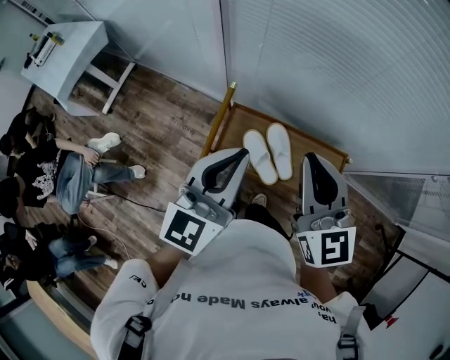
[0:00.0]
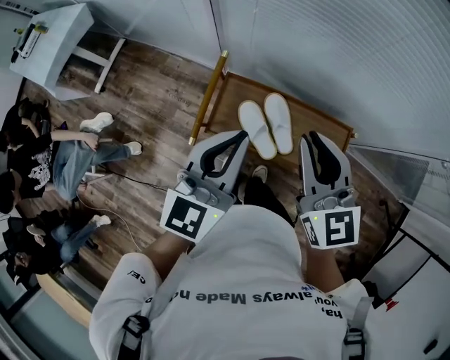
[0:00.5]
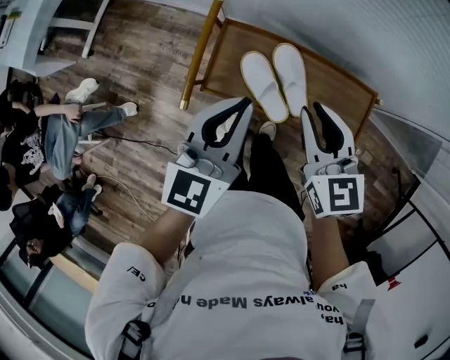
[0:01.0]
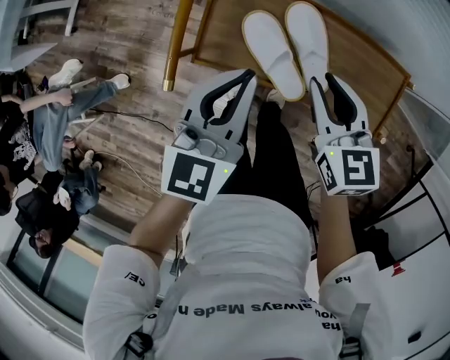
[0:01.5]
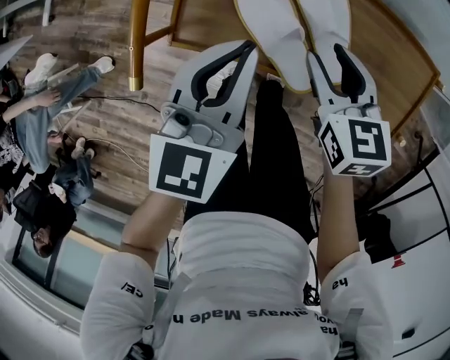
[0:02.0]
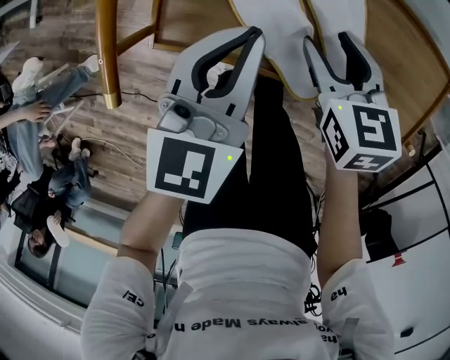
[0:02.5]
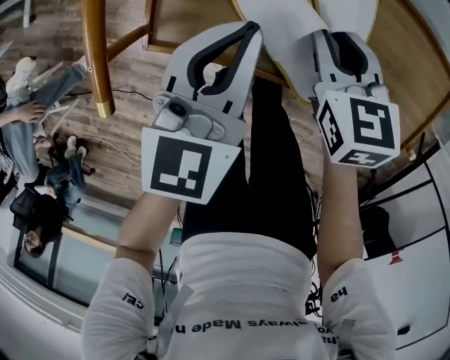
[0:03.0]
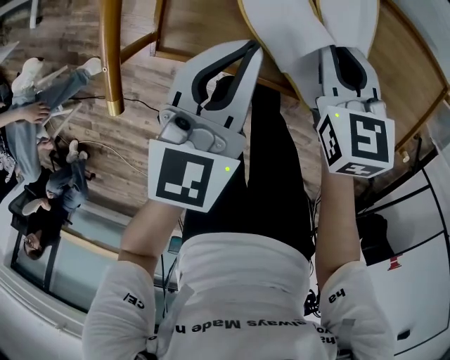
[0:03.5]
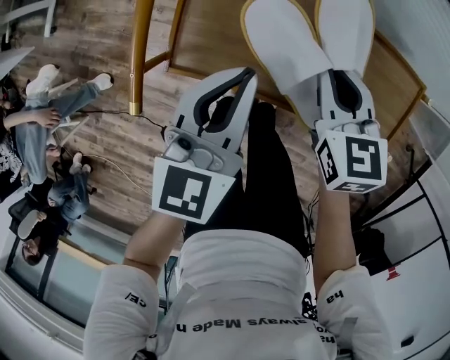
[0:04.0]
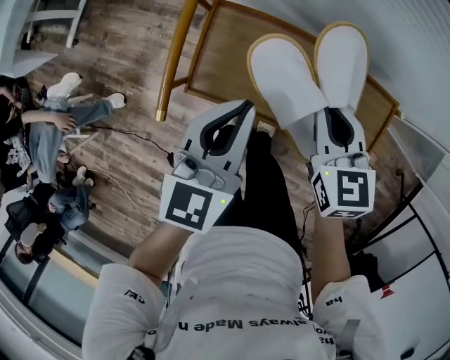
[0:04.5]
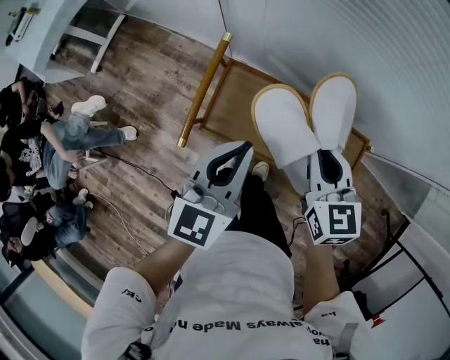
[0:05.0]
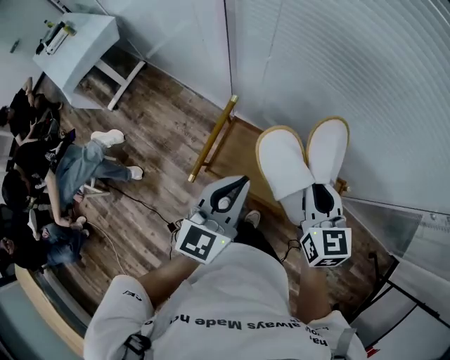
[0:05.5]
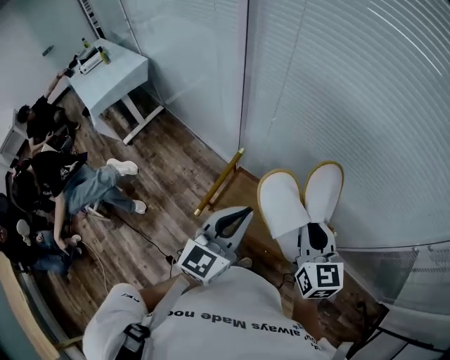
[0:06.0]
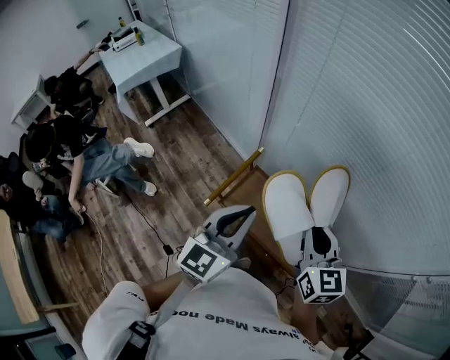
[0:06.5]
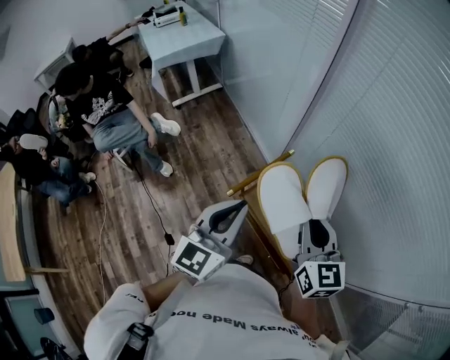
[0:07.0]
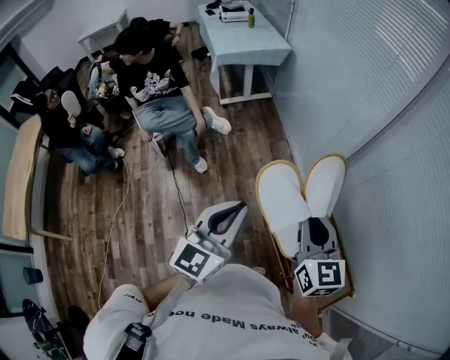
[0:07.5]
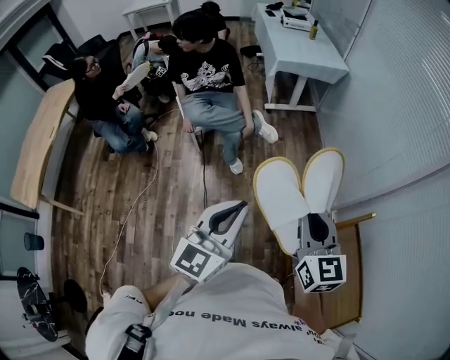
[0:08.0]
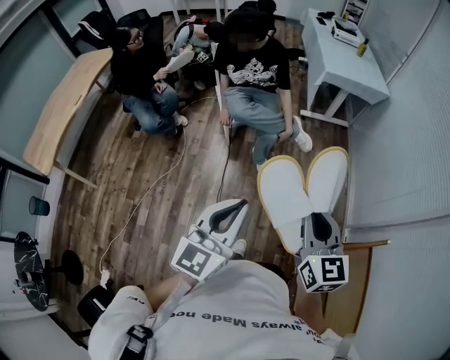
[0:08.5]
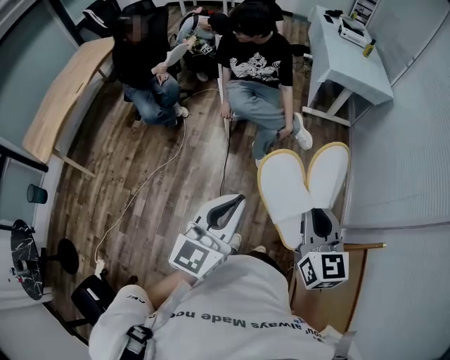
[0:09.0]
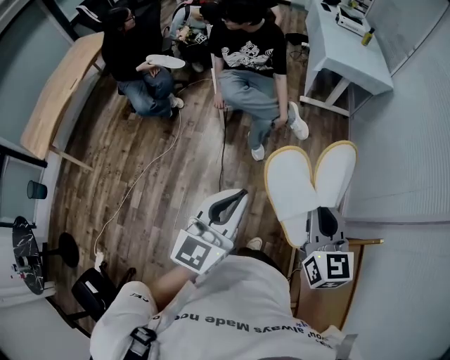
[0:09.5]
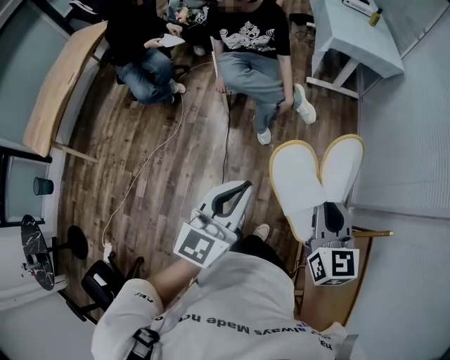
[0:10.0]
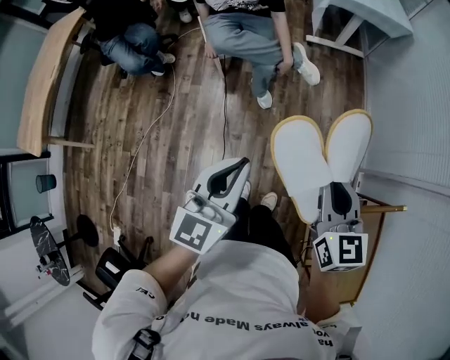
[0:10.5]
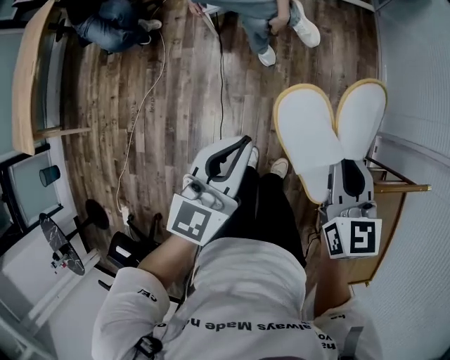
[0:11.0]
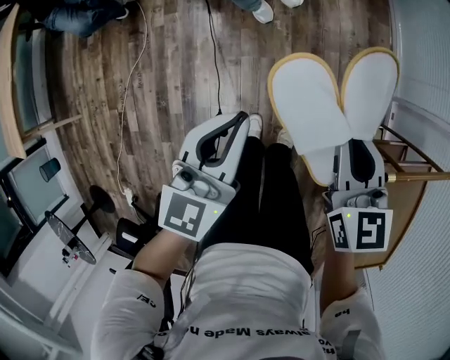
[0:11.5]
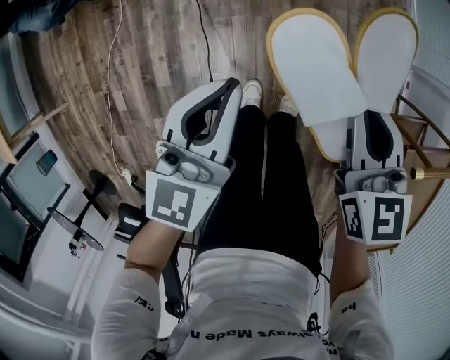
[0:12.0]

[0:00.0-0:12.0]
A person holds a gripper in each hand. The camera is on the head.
0:00.0 to 0:02.0: The two grippers go roughly 40 cm downward. The right gripper tilts its fingers roughly 40 degrees downward, and opens its fingers; the left gripper changes its angle by approximately 20 degrees.
0:02.0 to 0:04.0: The right gripper moves approximately 10 cm downward and comes back, and closes up; the left gripper goes downward and returns, roughly 10 cm each way.
0:04.0 to 0:06.0: Both grippers travel together upward, about 40 cm. The left gripper swivels some 20 degrees. Meanwhile the right gripper rotates some 30 degrees.
0:06.0 to 0:08.0: The two grippers travel together, some 50 cm. The right gripper swivels approximately 50 degrees. Meanwhile the left gripper turns by approximately 50 degrees.
0:08.0 to 0:10.0: The right gripper goes roughly 10 cm forward, downward and to the left; the left gripper heads to the left, downward and forward, covering about 10 cm.
0:10.0 to 0:12.0: Both grippers move downward, about 40 cm.

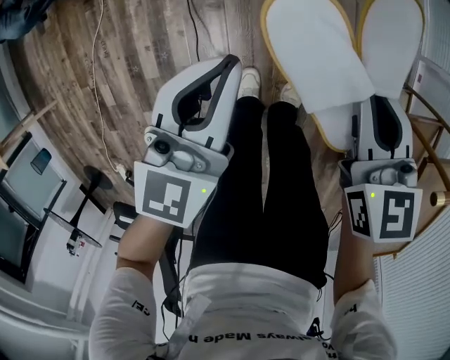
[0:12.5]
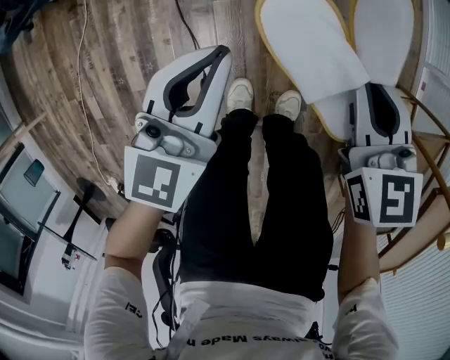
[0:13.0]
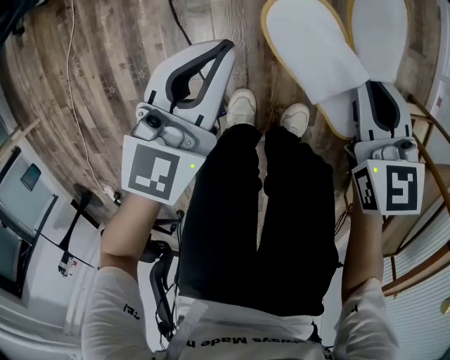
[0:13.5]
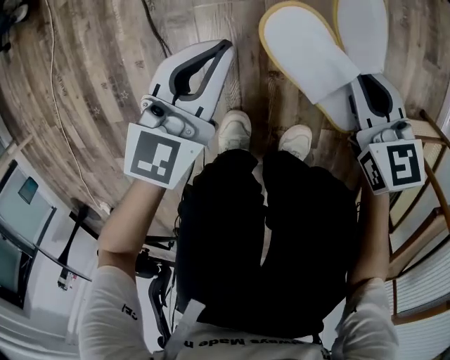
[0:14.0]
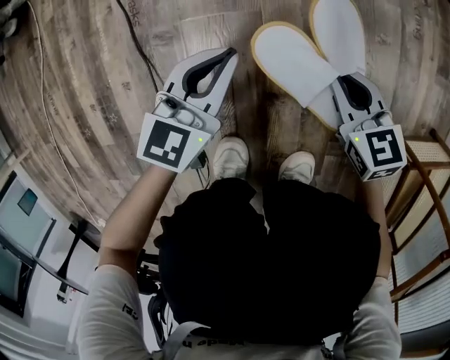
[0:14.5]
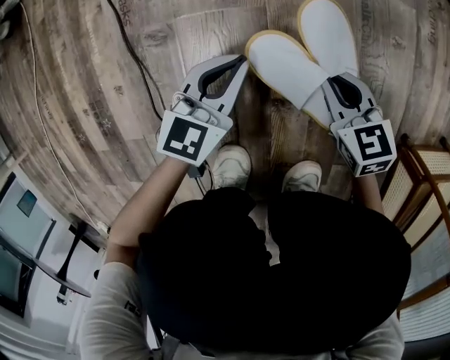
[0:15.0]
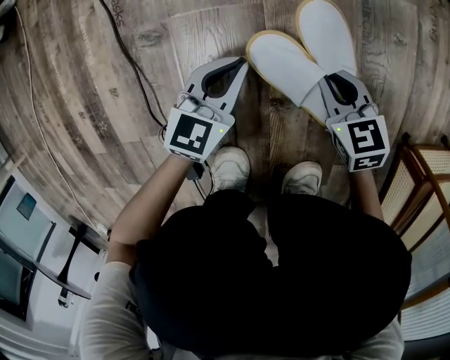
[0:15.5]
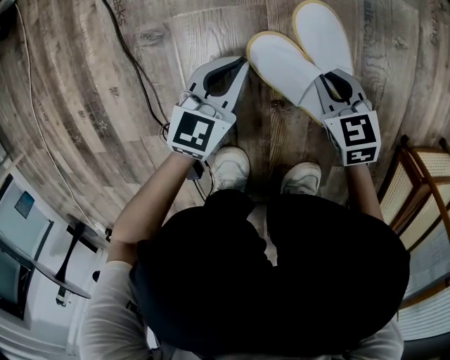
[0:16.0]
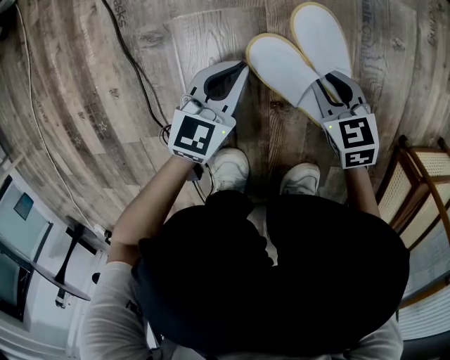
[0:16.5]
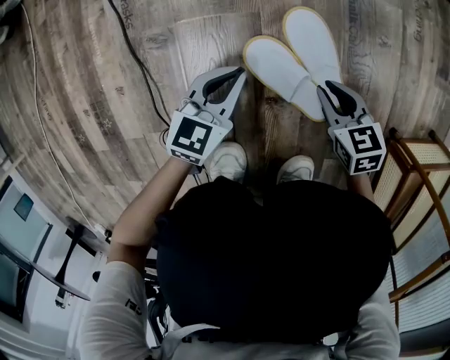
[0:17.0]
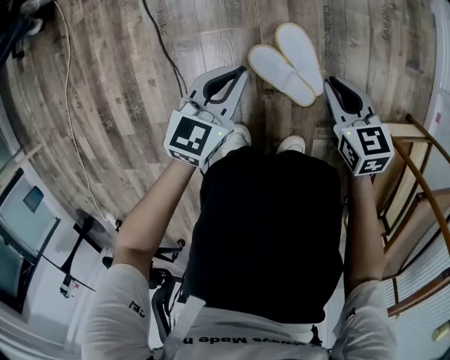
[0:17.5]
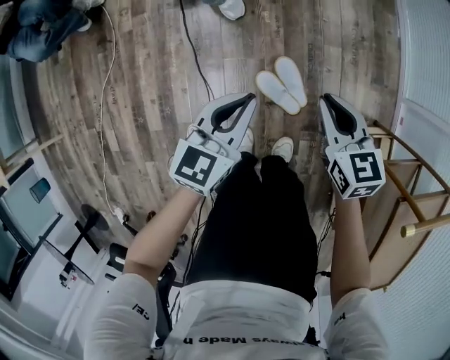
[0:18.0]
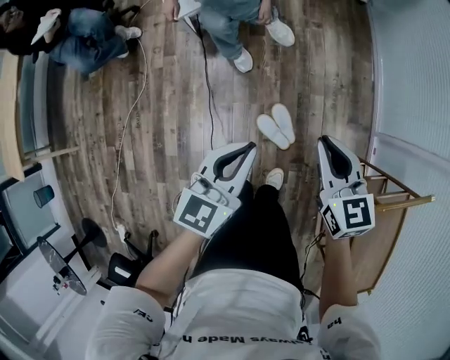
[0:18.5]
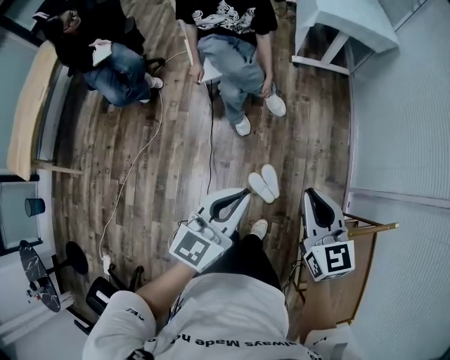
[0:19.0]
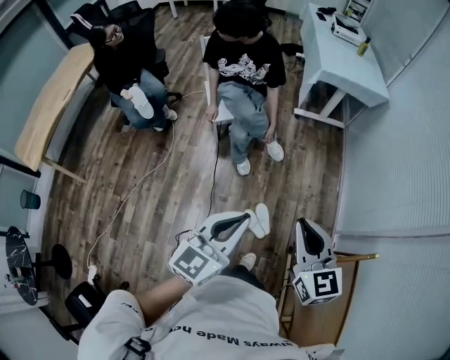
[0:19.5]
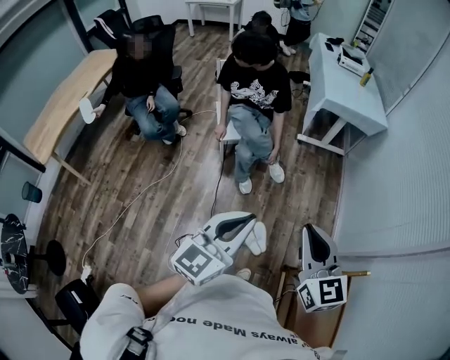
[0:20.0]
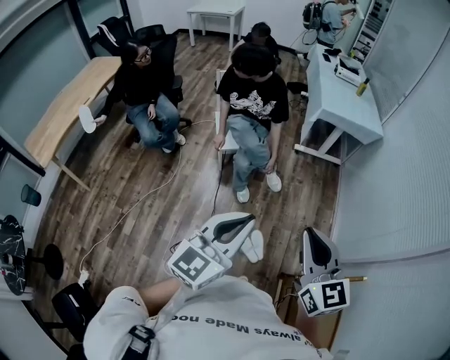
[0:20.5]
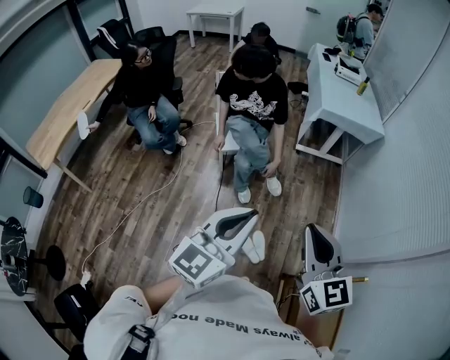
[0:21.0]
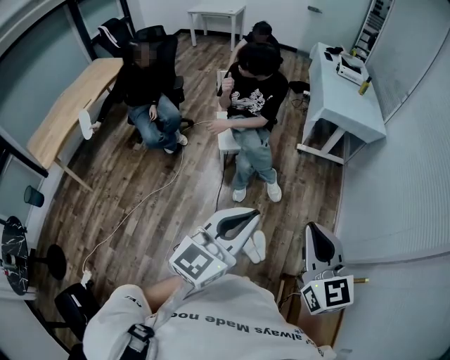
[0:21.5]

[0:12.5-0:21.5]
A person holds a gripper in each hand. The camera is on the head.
0:12.5 to 0:14.5: Both grippers move downward, roughly 50 cm.
0:14.5 to 0:17.0: Both grippers travel together downward, roughly 10 cm.
0:17.0 to 0:19.5: Both grippers move upward, about 1 m. The left gripper swivels about 30 degrees. Meanwhile the right gripper points its fingers approximately 30 degrees further upward.
0:19.5 to 0:21.5: Both grippers move upward, about 15 cm.

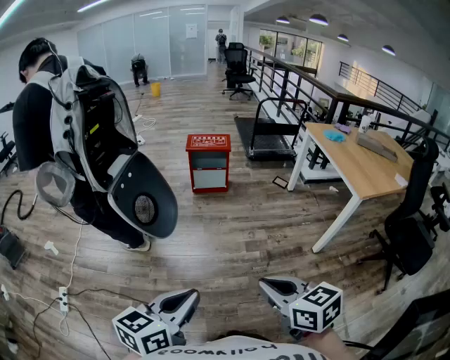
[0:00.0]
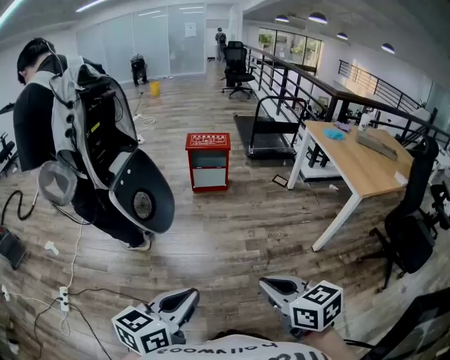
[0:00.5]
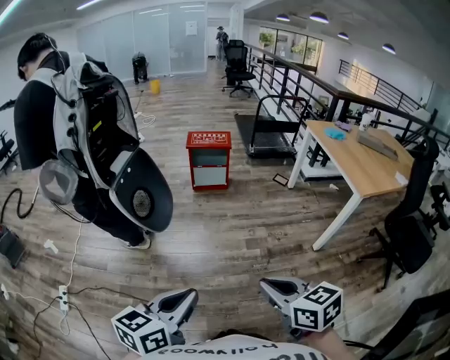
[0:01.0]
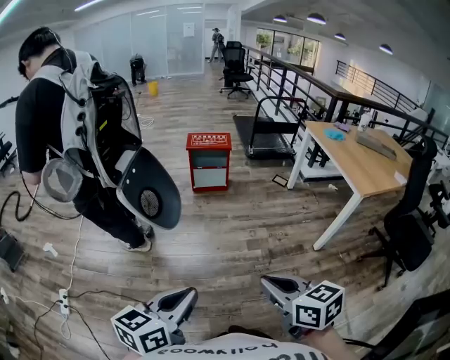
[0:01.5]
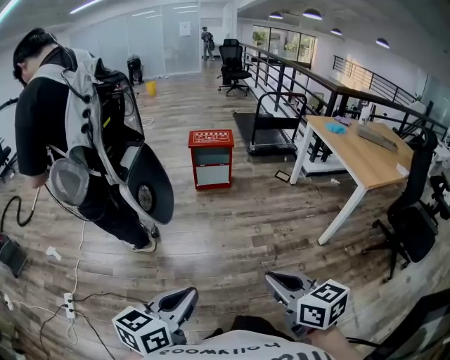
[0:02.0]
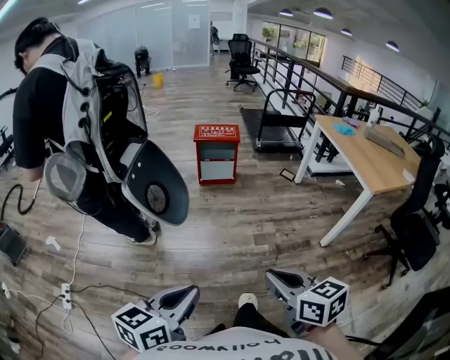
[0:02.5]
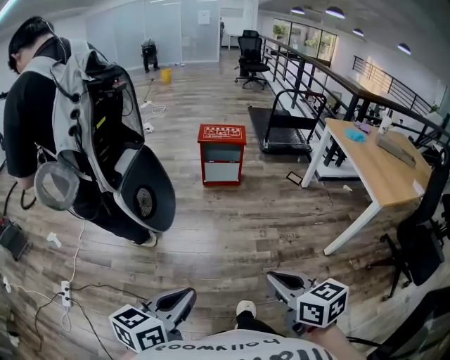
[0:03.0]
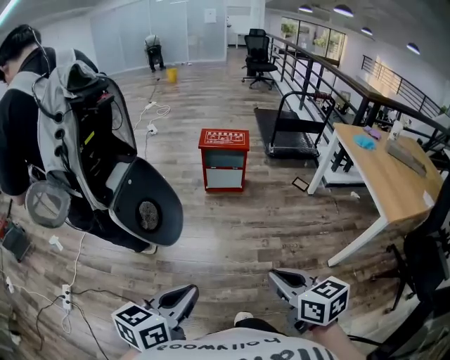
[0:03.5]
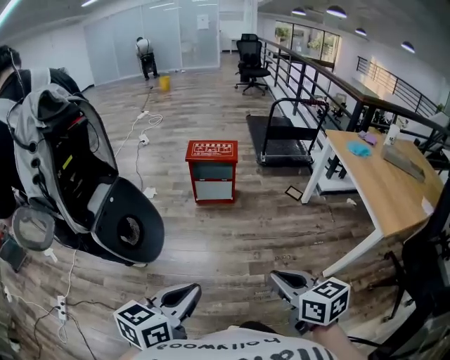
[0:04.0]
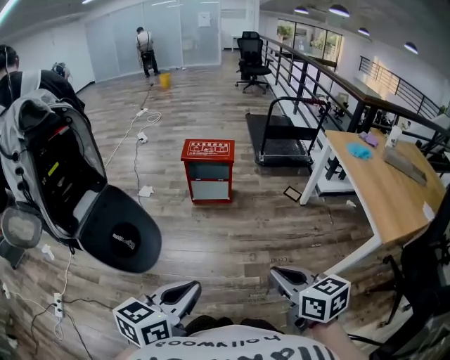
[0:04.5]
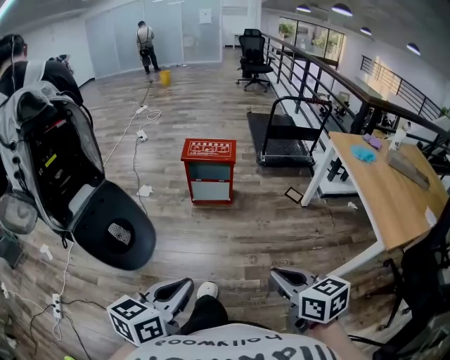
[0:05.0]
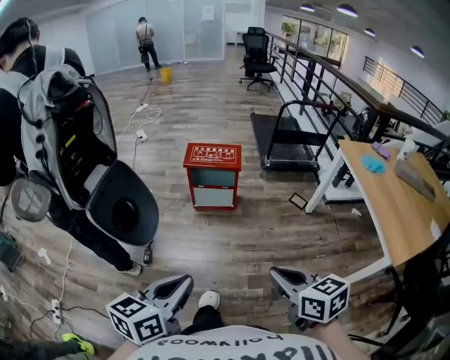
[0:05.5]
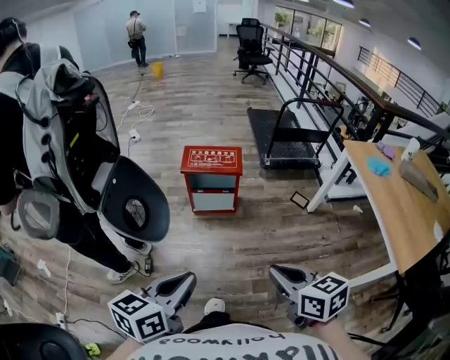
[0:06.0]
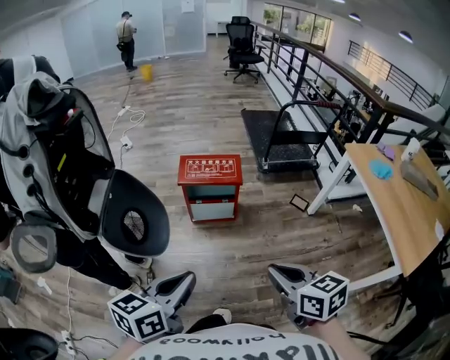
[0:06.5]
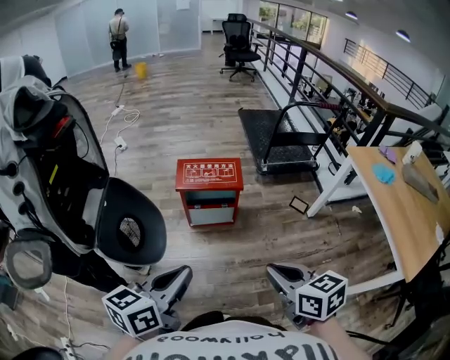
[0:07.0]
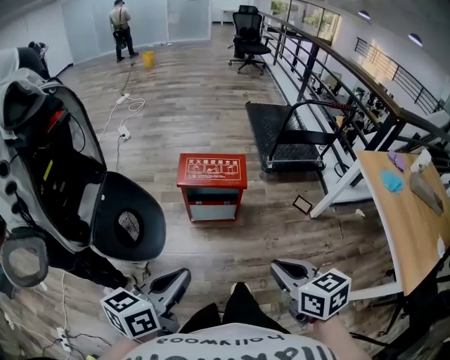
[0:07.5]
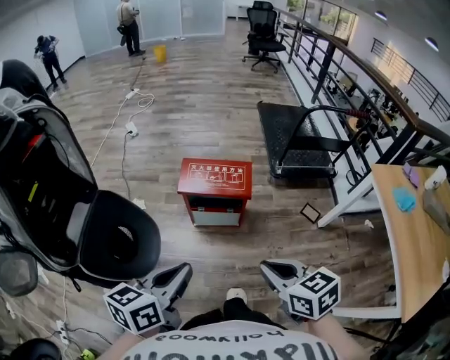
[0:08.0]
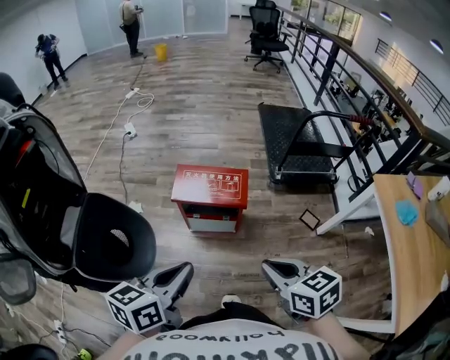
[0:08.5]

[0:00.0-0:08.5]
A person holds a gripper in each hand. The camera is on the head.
0:00.0 to 0:02.0: The grippers both shift to the left by some 10 cm.
0:02.0 to 0:04.0: Both grippers move forward and to the right, about 30 cm.
0:04.0 to 0:06.5: Both grippers move forward, some 35 cm.
0:06.5 to 0:08.5: The grippers both shift forward by some 25 cm.
